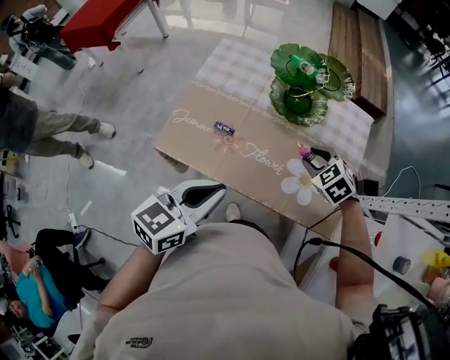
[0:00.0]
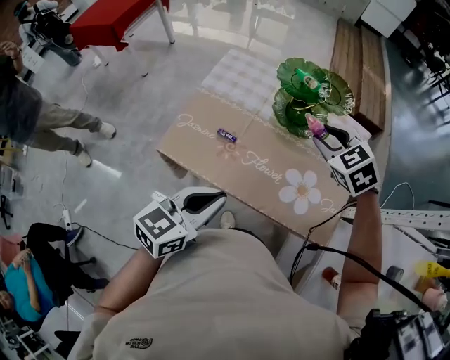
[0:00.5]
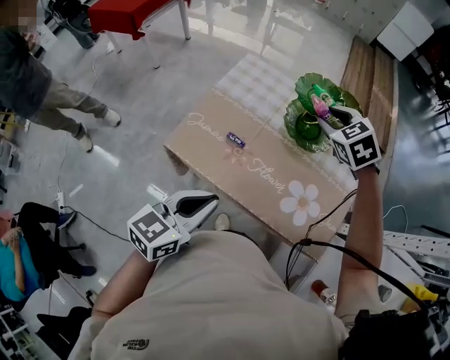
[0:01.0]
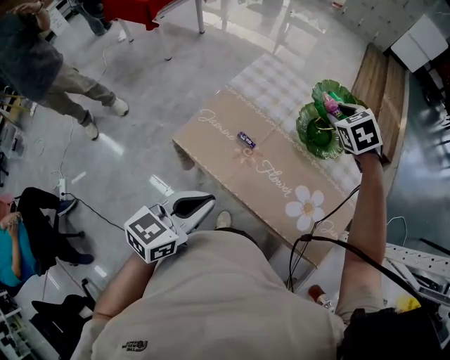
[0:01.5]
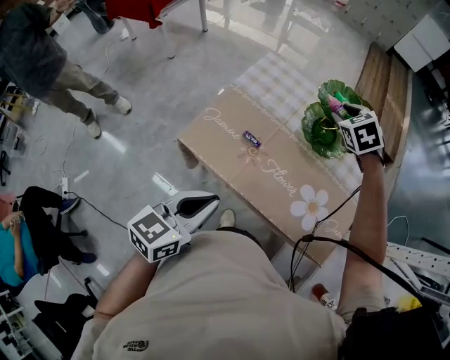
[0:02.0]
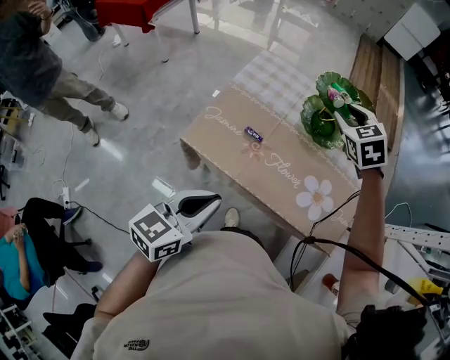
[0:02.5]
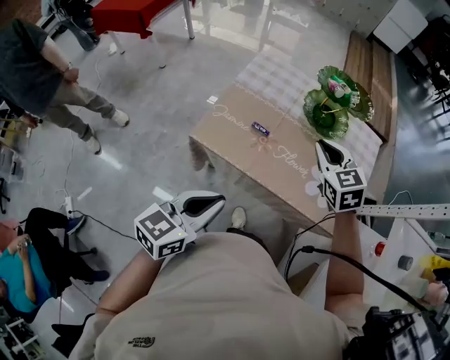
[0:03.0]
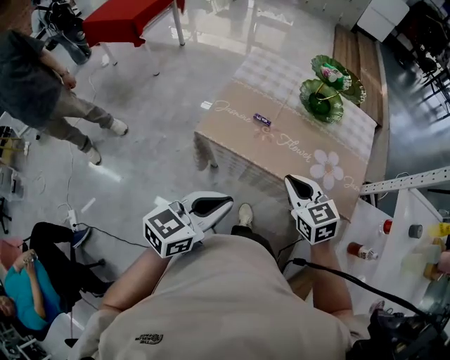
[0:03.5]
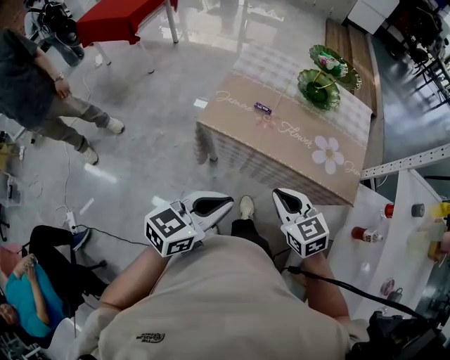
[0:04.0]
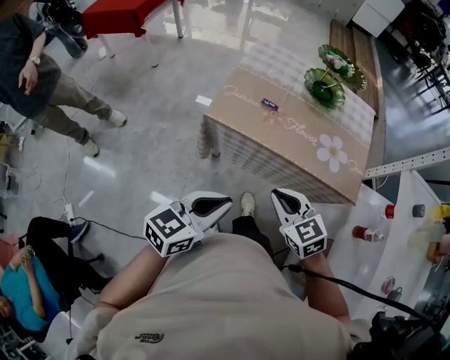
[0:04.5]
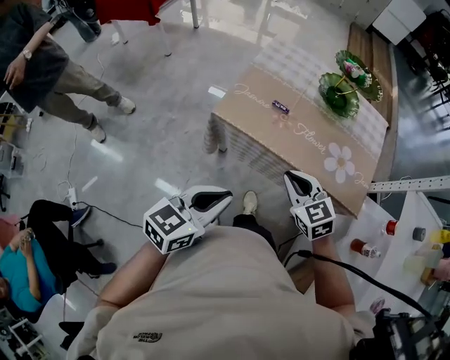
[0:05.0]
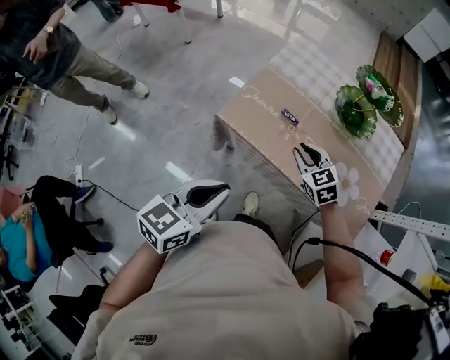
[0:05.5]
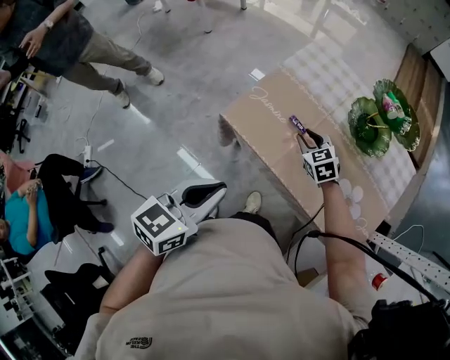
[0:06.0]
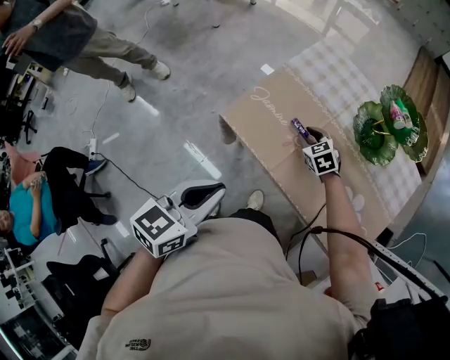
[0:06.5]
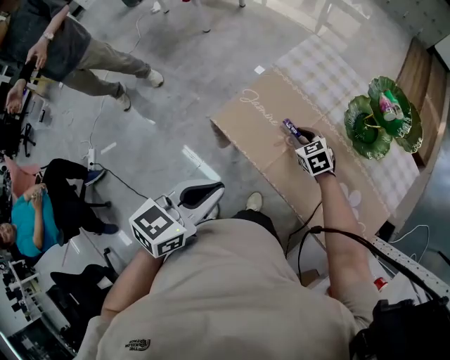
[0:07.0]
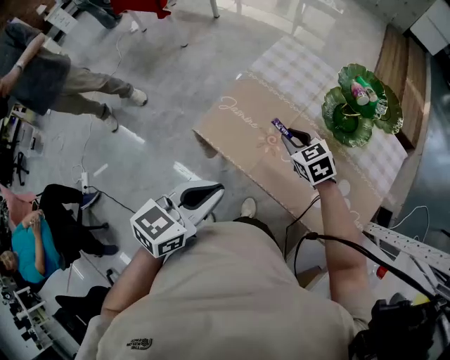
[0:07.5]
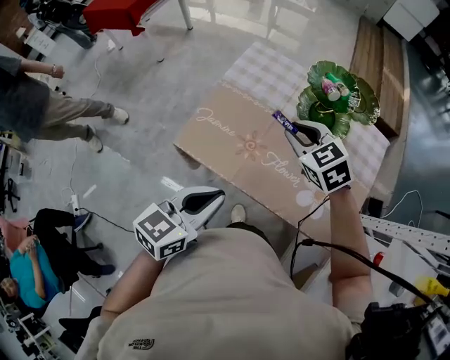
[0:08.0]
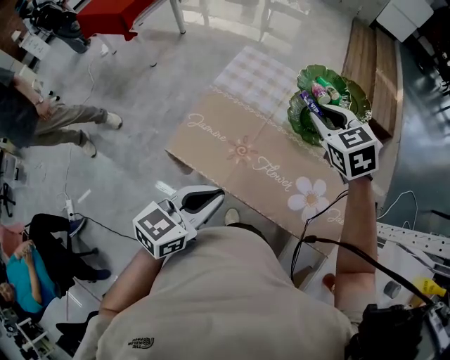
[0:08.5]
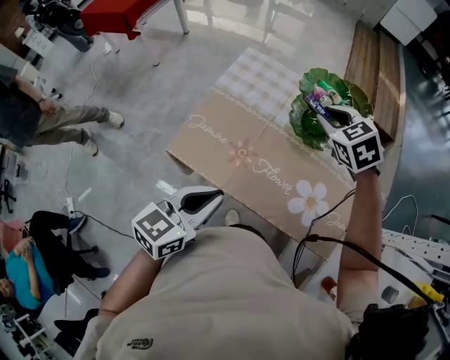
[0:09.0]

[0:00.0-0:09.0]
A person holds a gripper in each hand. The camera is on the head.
0:00.0 to 0:02.0: The right gripper shifts approximately 25 cm forward, upward and to the left. Meanwhile the left gripper moves to the left, approximately 5 cm.
0:02.0 to 0:04.5: The right gripper heads backward, covering approximately 50 cm, changes its angle by some 30 degrees, and closes up. The left gripper moves backward, some 20 cm.
0:04.5 to 0:07.0: The right gripper is displaced forward and downward by about 40 cm, and rotates roughly 20 degrees. Meanwhile the left gripper moves forward, roughly 20 cm, and changes its angle by about 30 degrees.
0:07.0 to 0:09.0: The right gripper travels upward and to the right by roughly 30 cm. The left gripper heads to the right and forward, covering some 10 cm.

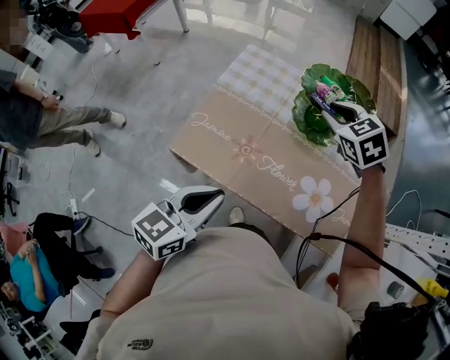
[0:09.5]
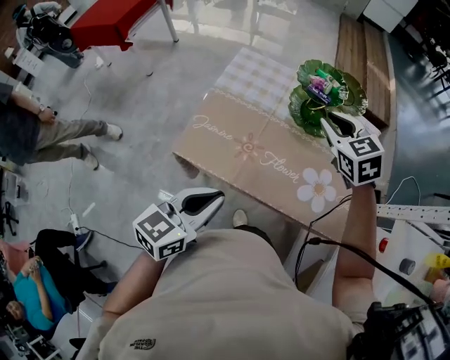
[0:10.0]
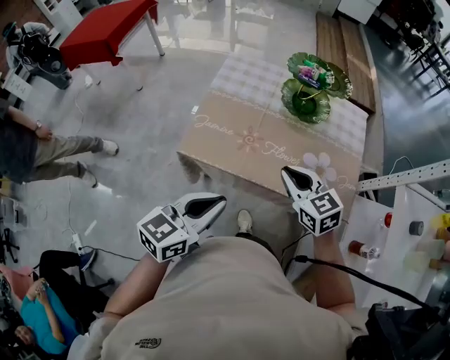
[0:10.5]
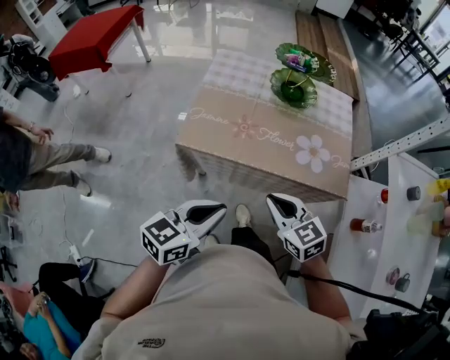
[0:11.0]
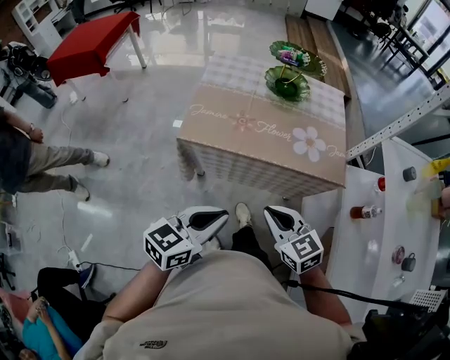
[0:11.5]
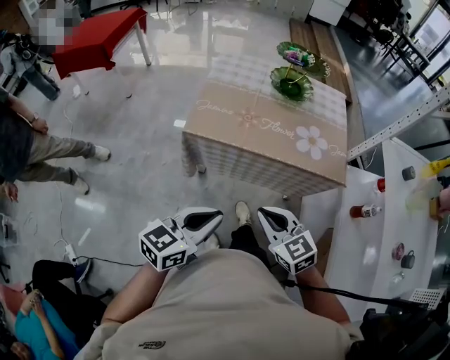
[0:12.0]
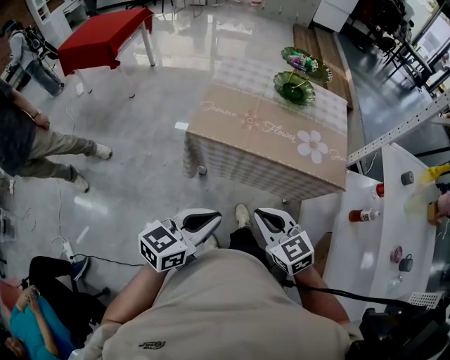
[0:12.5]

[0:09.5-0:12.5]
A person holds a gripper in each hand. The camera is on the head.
0:09.5 to 0:11.0: The left gripper shifts approximately 20 cm backward. The right gripper shifts some 40 cm backward, swivels roughly 30 degrees, and closes.
0:11.0 to 0:12.5: The grippers both shift backward by about 15 cm.

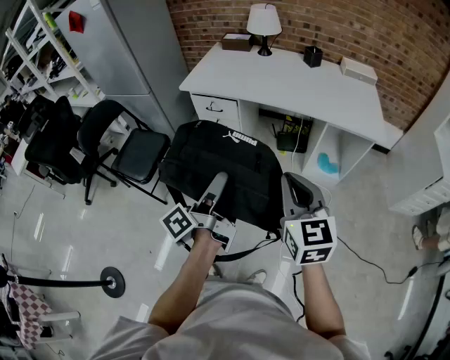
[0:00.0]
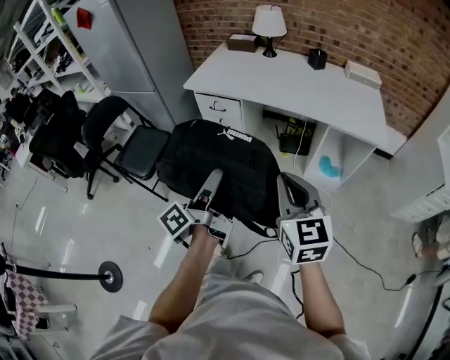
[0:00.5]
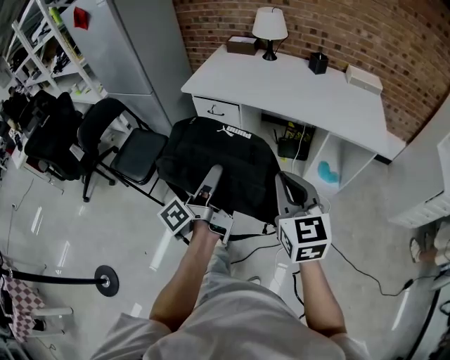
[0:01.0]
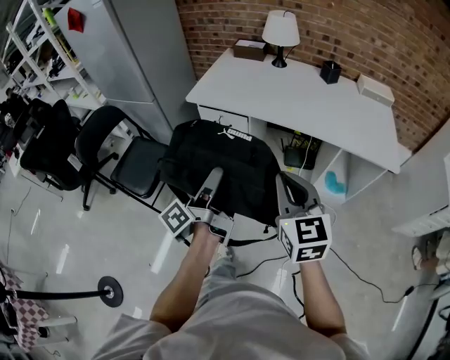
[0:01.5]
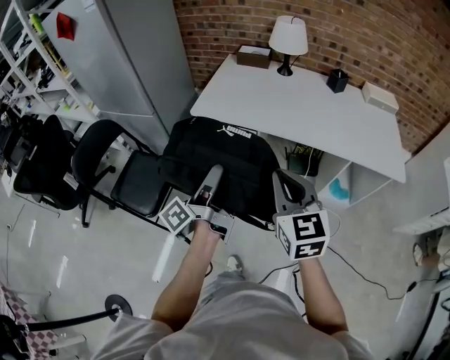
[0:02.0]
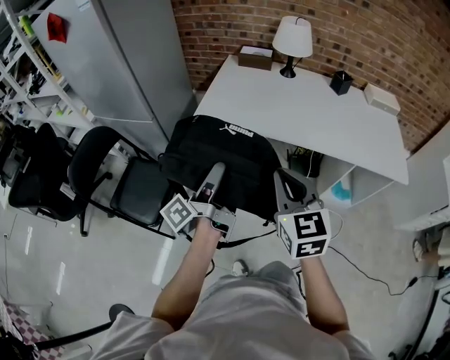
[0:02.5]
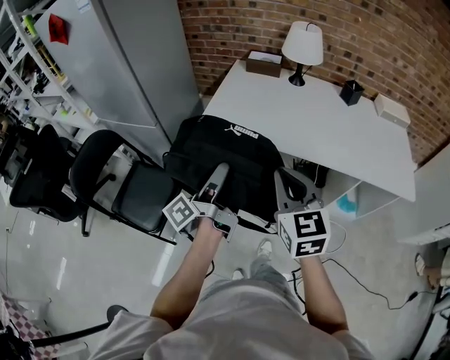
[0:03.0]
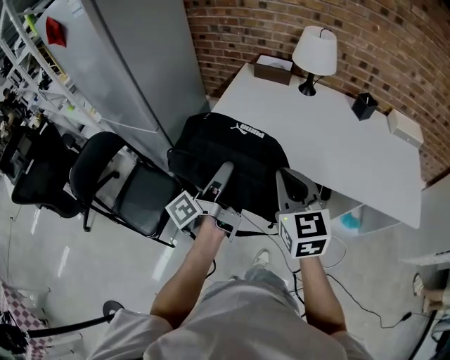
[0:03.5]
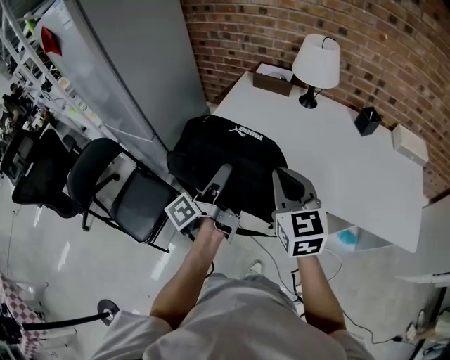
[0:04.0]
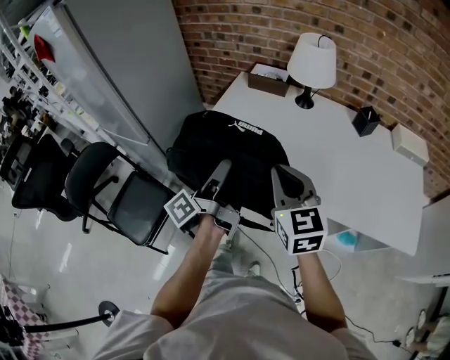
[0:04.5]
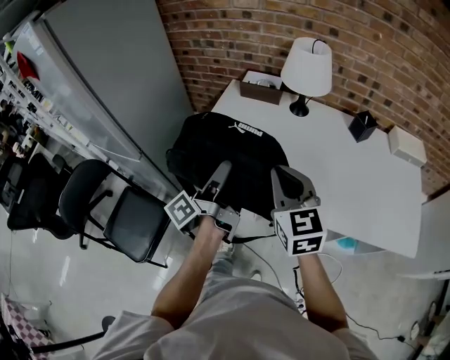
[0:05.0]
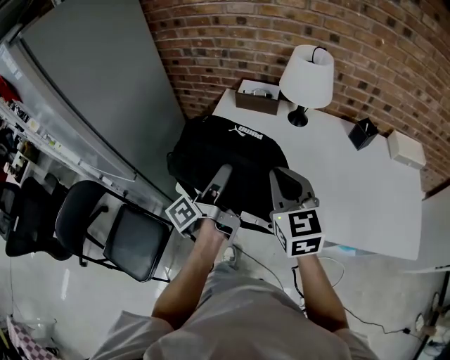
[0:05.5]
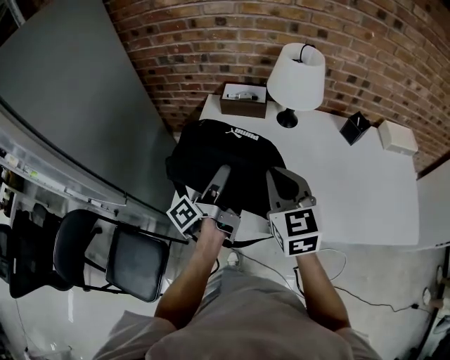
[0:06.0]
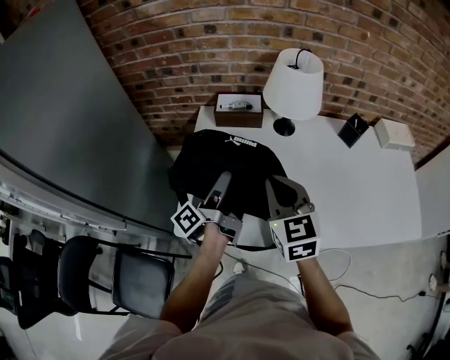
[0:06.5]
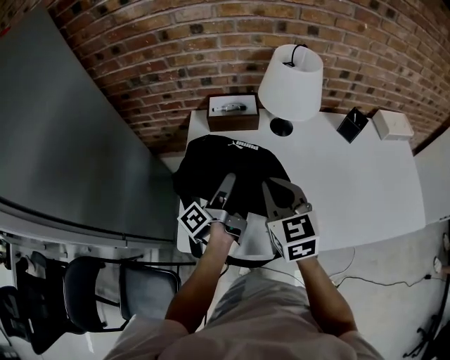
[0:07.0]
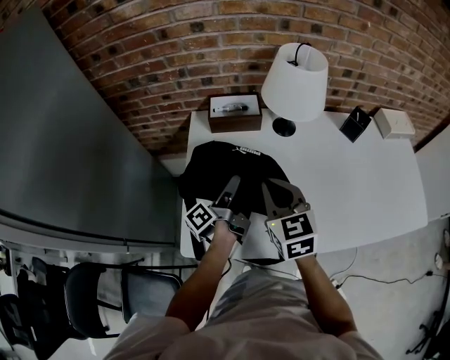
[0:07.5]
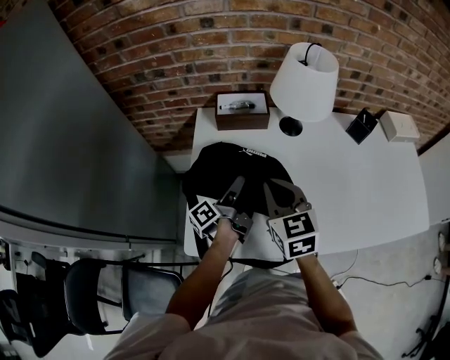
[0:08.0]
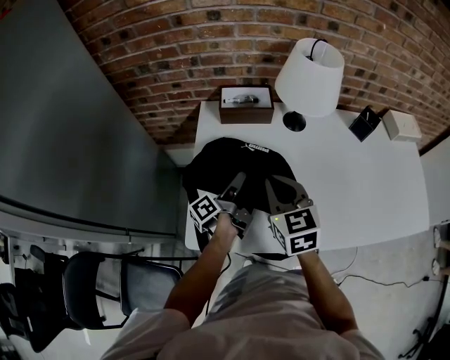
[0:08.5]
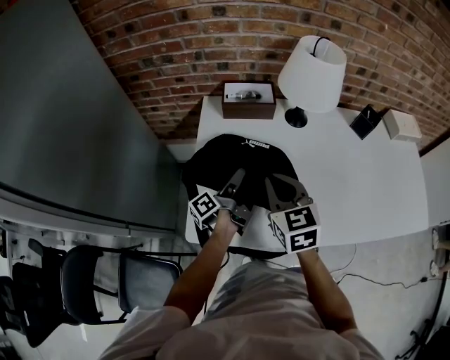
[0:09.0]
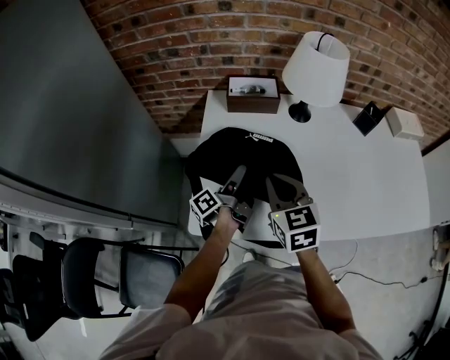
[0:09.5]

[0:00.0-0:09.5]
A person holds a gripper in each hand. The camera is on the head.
0:00.0 to 0:02.0: The right gripper changes place by some 25 cm.
0:02.0 to 0:04.0: The right gripper moves roughly 25 cm.
0:04.0 to 0:05.5: The right gripper shifts by about 15 cm.
0:05.5 to 0:07.5: The right gripper changes place by about 20 cm.
0:07.5 to 0:09.5: The right gripper moves approximately 5 cm.

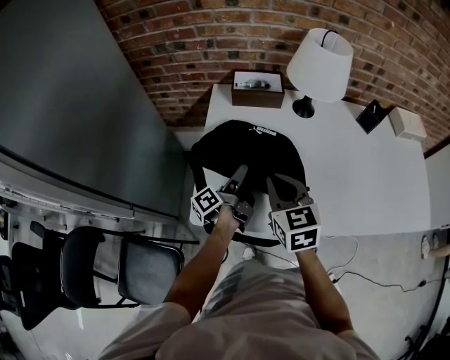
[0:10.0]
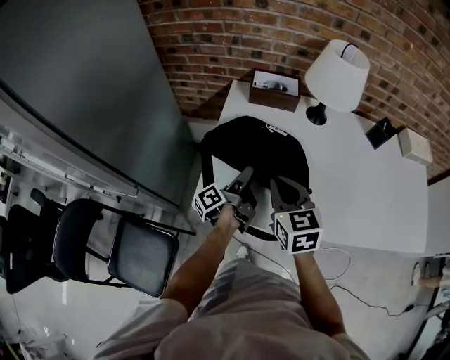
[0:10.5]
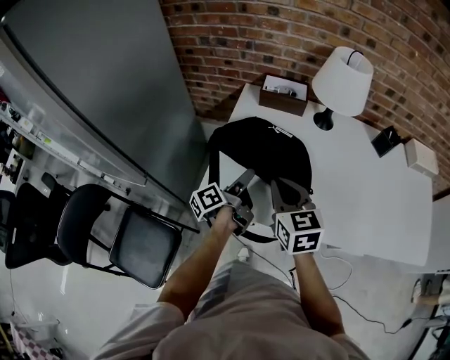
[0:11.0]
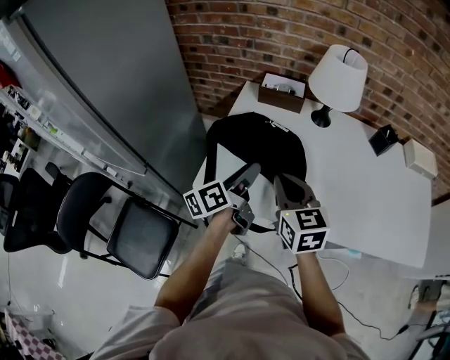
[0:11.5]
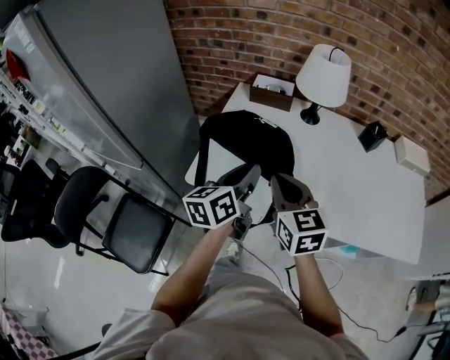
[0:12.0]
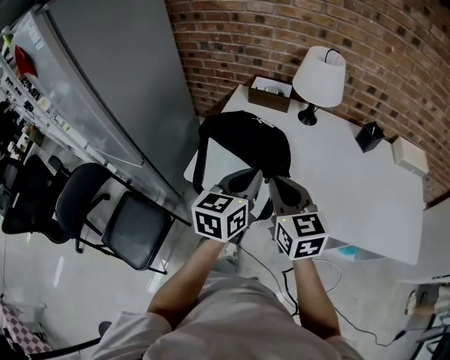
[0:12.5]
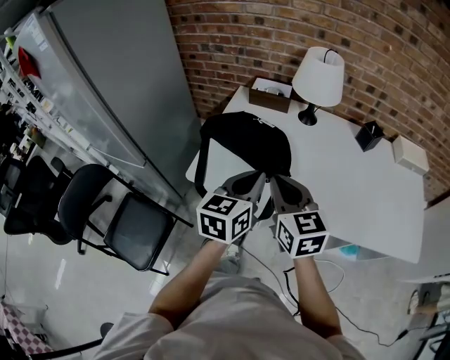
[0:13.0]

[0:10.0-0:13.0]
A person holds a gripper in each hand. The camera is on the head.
0:10.0 to 0:11.5: The right gripper ends up approximately 10 cm from where it was.
0:11.5 to 0:13.0: The right gripper ends up roughly 10 cm from where it was.

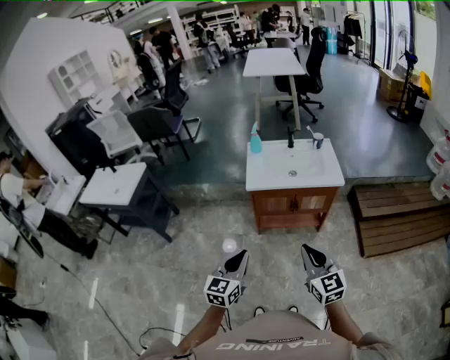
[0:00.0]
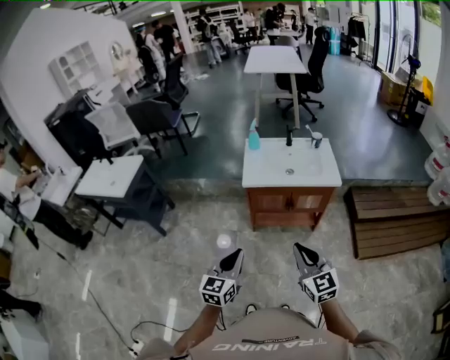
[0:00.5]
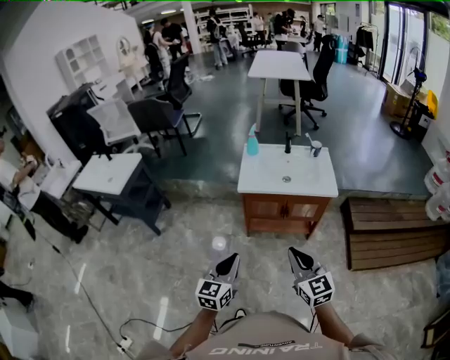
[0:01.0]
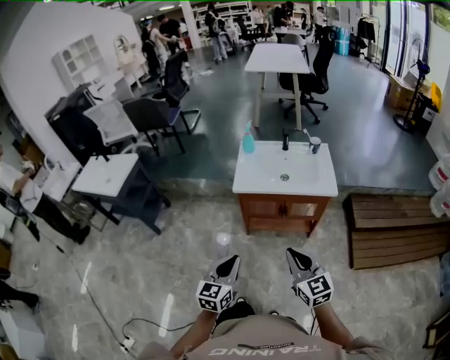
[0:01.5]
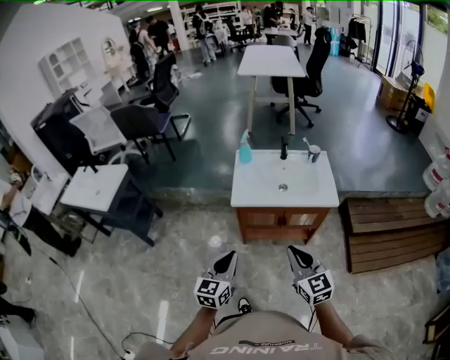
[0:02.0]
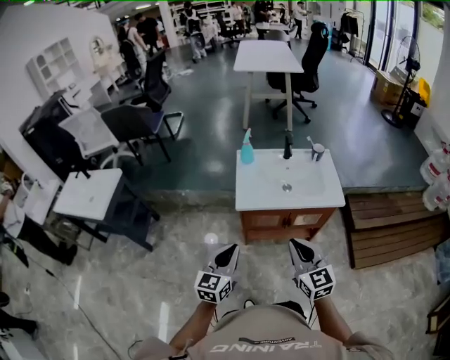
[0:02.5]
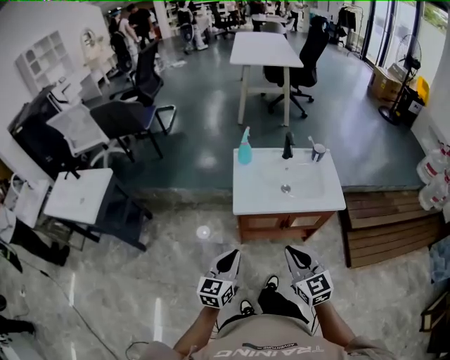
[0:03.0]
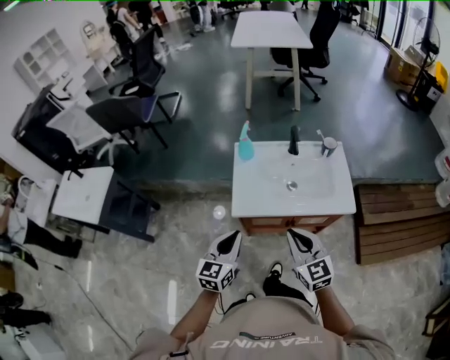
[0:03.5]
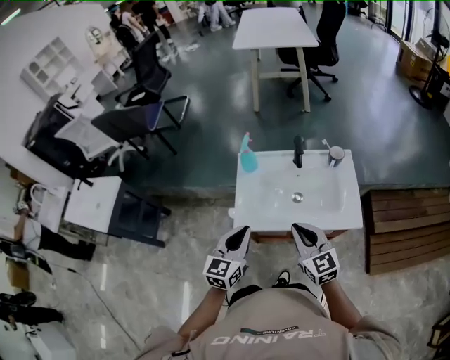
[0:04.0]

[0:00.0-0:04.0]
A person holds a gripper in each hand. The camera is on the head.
0:00.0 to 0:02.0: The grippers both shift forward by about 15 cm.
0:02.0 to 0:04.0: The two grippers go about 25 cm forward.
